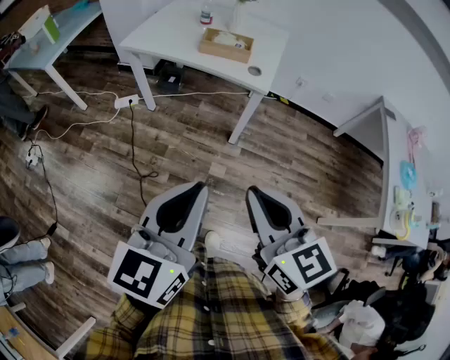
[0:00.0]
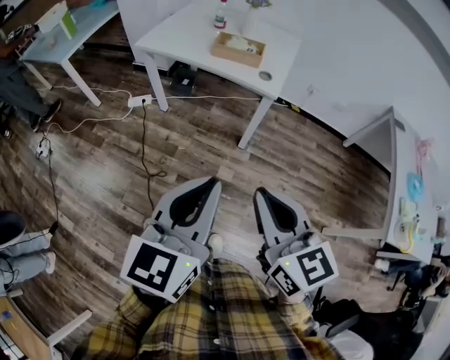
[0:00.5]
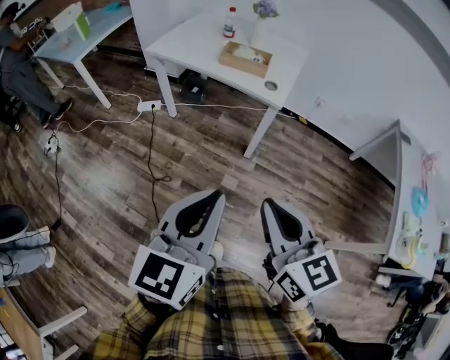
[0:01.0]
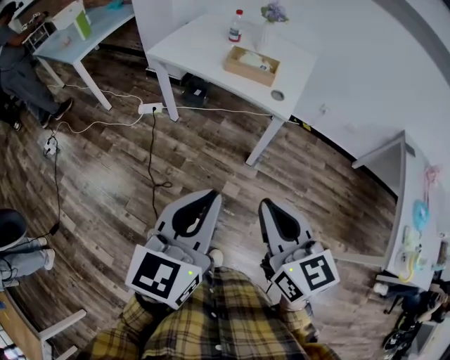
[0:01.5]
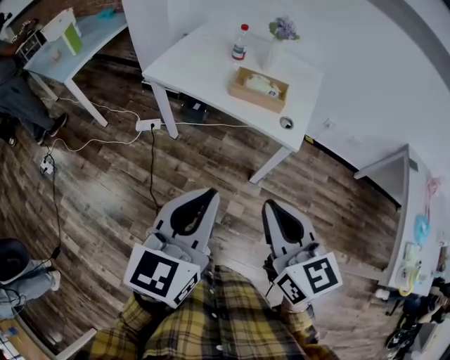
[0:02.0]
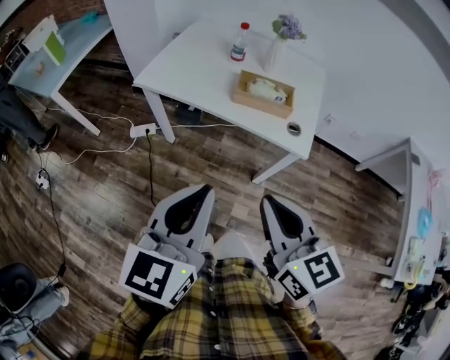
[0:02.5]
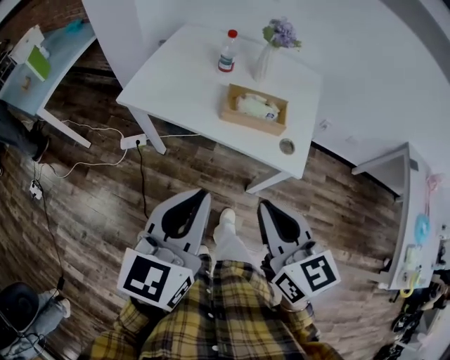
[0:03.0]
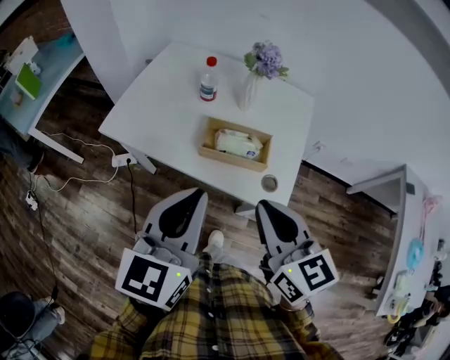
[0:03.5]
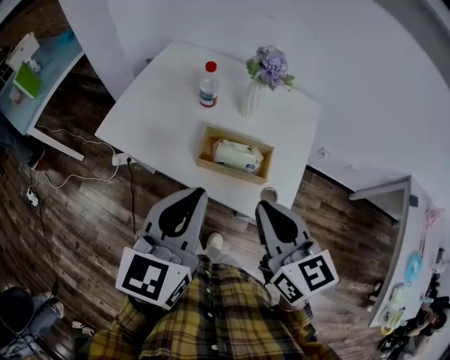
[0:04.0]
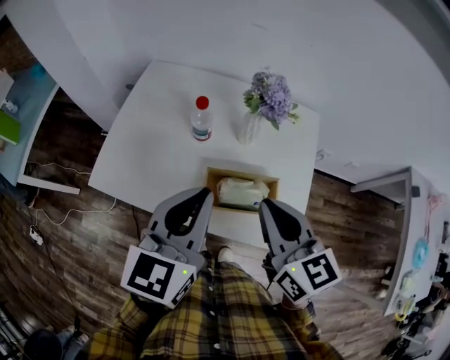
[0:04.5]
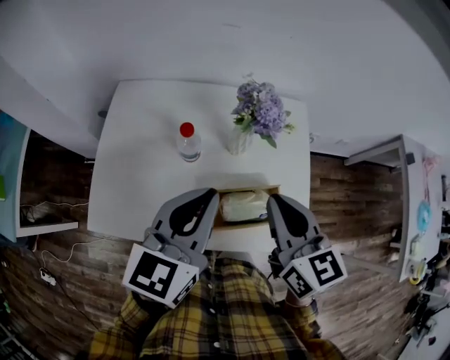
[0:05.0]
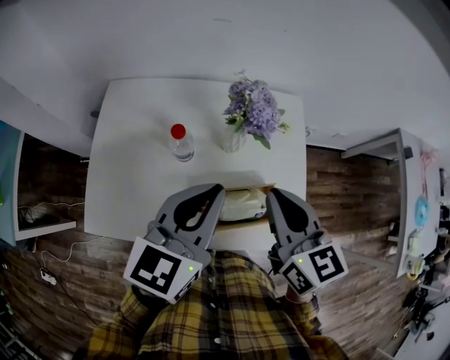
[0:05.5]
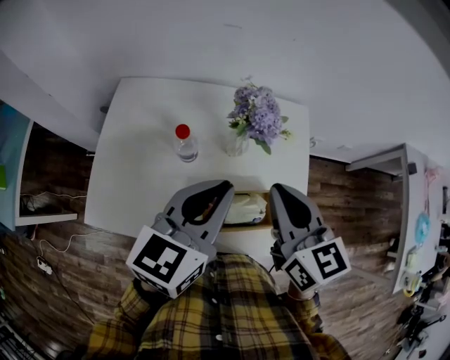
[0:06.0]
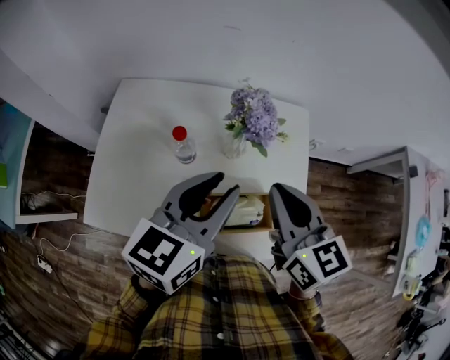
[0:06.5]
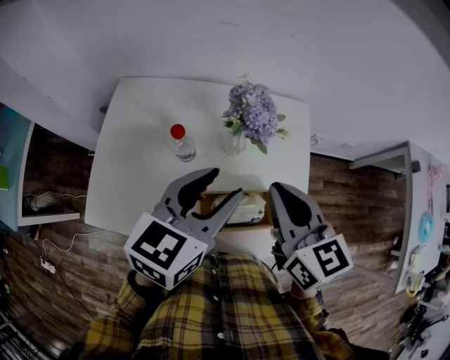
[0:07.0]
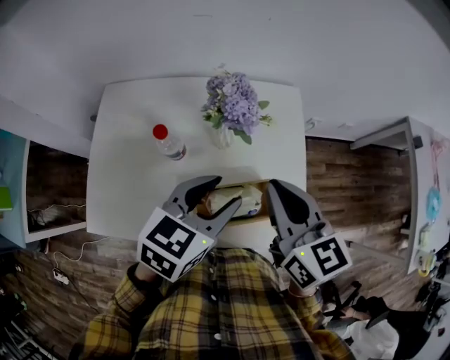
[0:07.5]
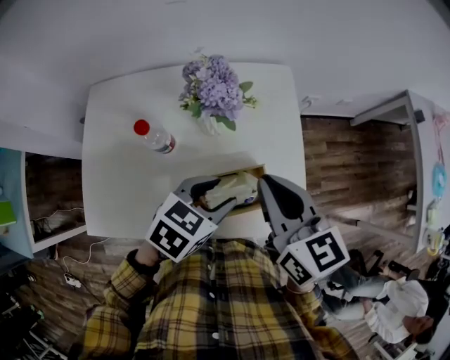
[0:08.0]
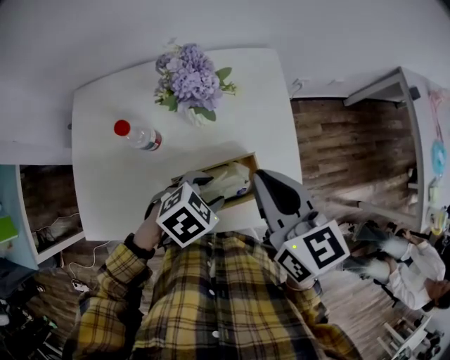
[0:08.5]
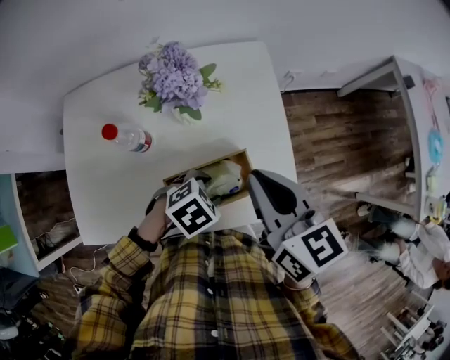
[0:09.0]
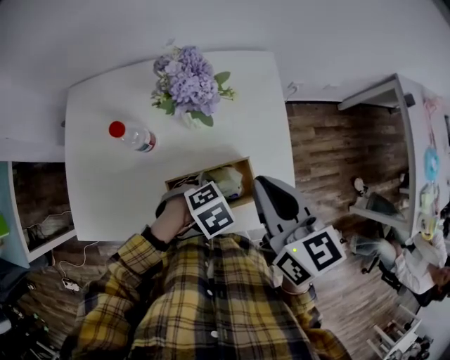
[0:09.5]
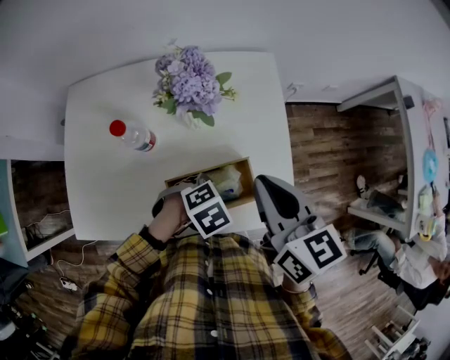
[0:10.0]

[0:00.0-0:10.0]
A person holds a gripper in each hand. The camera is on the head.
0:00.0 to 0:02.0: Both grippers travel together forward, roughly 15 cm.
0:02.0 to 0:04.0: The grippers both shift forward by some 30 cm.
0:04.0 to 0:06.0: The right gripper moves about 20 cm; the left gripper changes place by about 20 cm, and turns by about 30 degrees.
0:06.0 to 0:08.0: The right gripper moves some 5 cm, while the left gripper shifts roughly 15 cm downward and to the right, points its fingers some 30 degrees further downward, and opens up.
0:08.0 to 0:10.0: The left gripper shifts approximately 15 cm downward, points its fingers roughly 30 degrees further downward, and closes up.

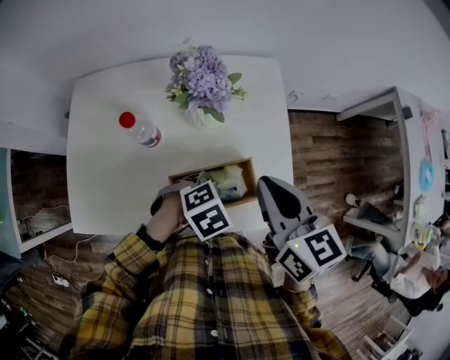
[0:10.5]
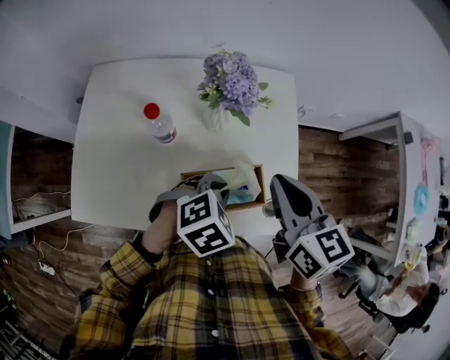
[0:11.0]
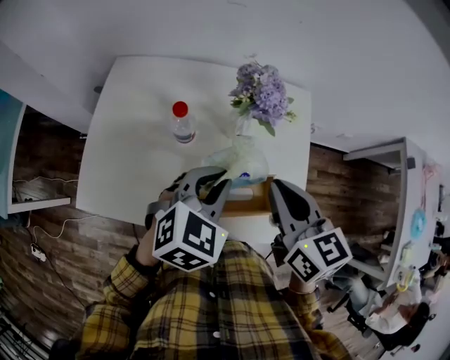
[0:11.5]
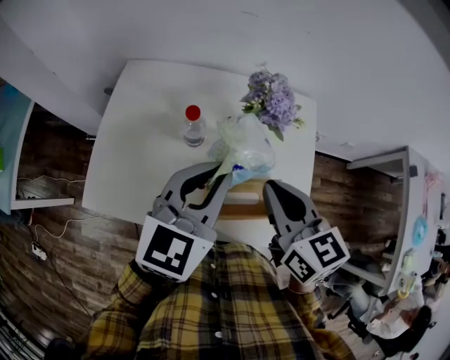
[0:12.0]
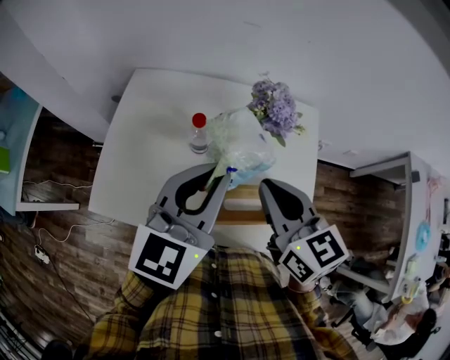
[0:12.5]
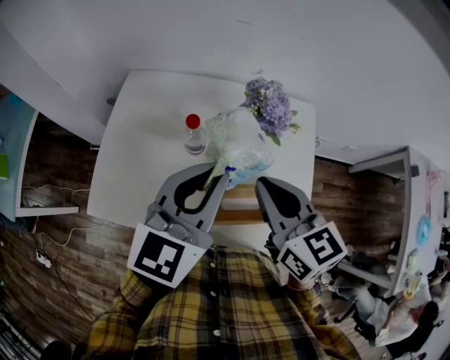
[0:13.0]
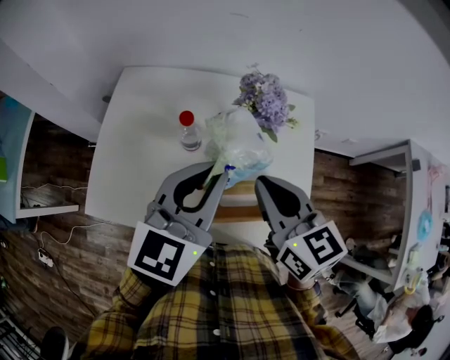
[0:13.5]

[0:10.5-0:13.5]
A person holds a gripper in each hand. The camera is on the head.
0:10.5 to 0:12.0: The left gripper goes about 25 cm upward, and points its fingers approximately 60 degrees further upward. Meanwhile the right gripper shifts by approximately 10 cm.
0:12.0 to 0:13.5: The grippers move only a little.

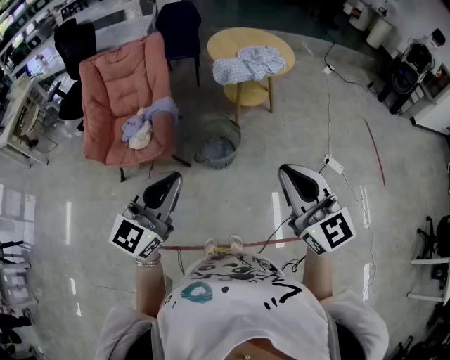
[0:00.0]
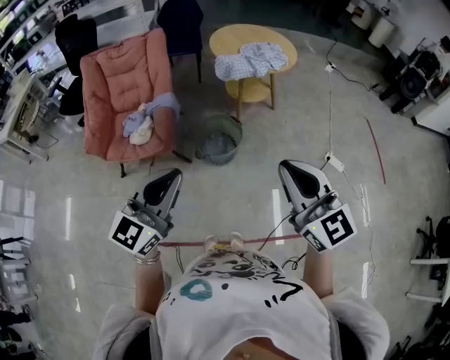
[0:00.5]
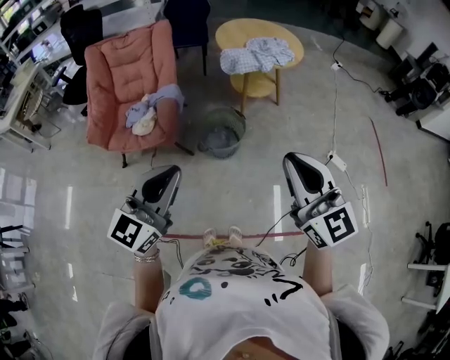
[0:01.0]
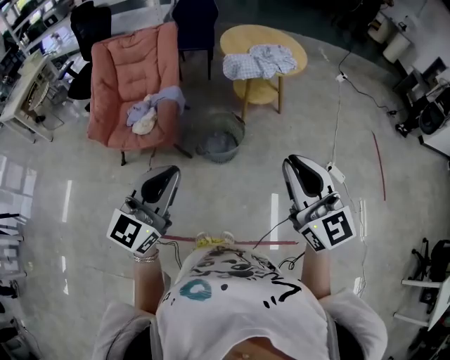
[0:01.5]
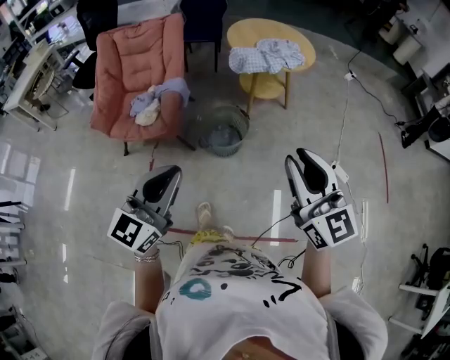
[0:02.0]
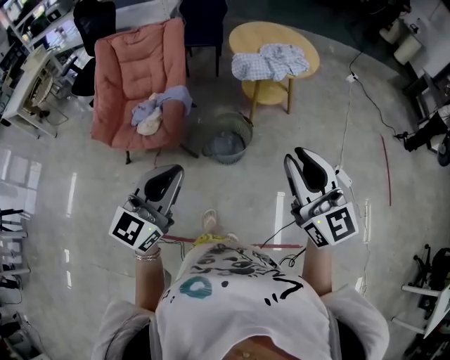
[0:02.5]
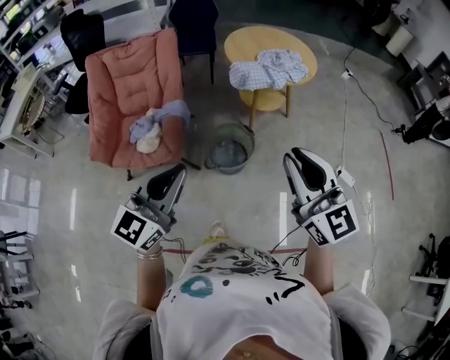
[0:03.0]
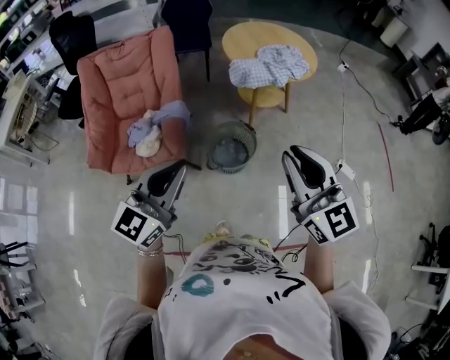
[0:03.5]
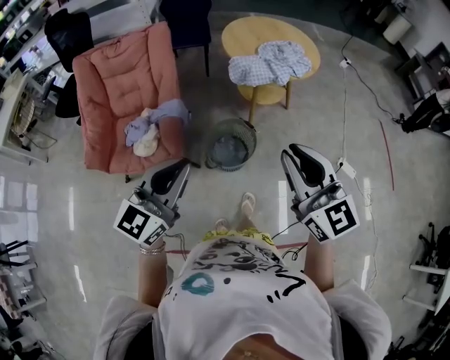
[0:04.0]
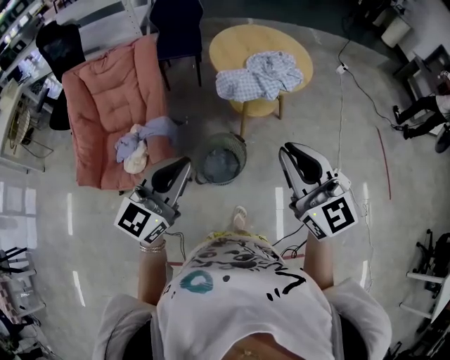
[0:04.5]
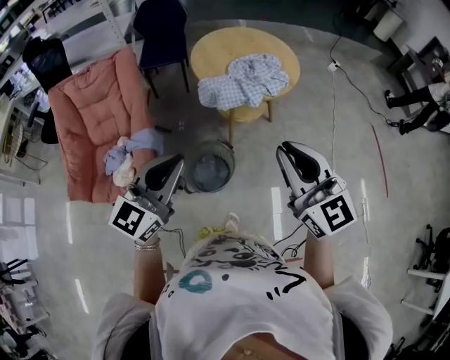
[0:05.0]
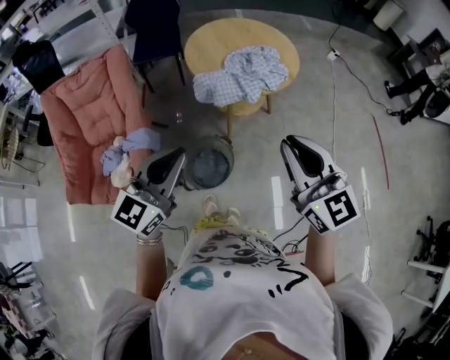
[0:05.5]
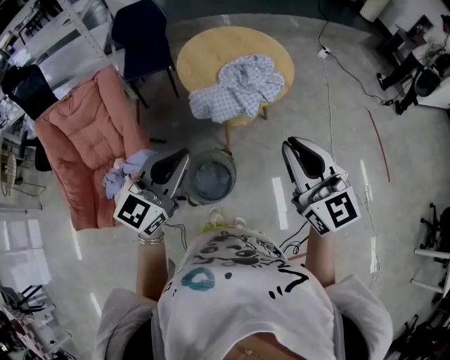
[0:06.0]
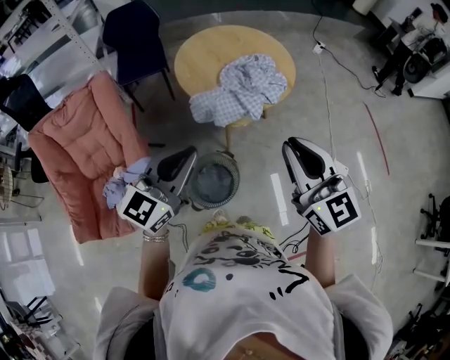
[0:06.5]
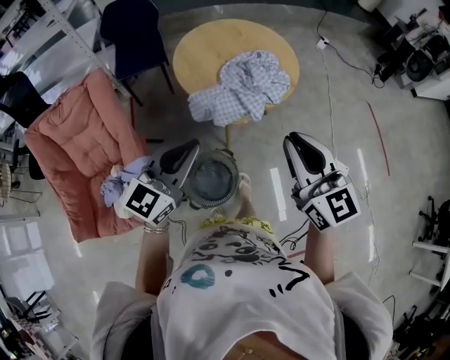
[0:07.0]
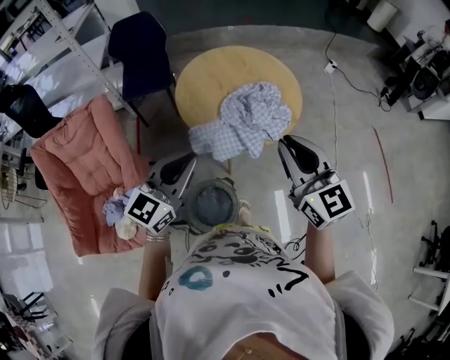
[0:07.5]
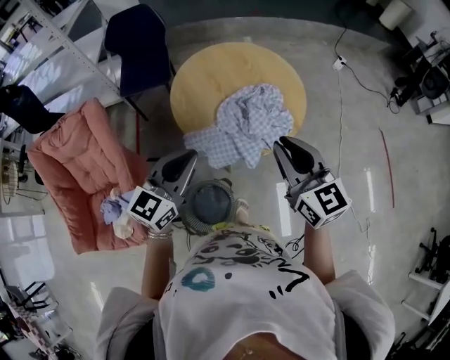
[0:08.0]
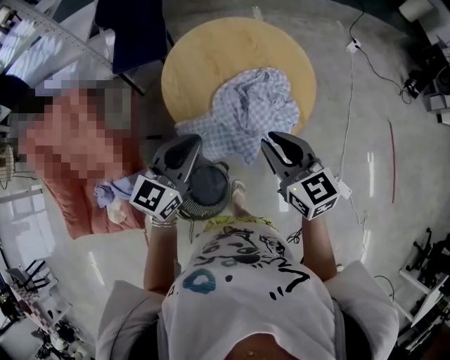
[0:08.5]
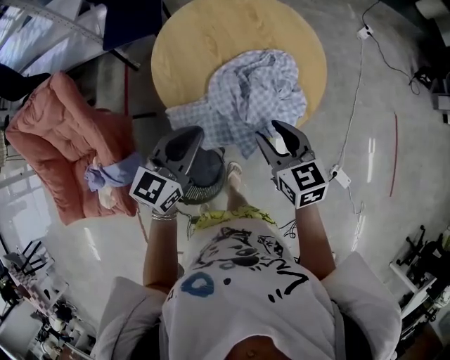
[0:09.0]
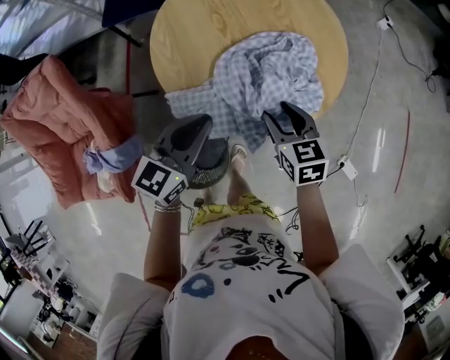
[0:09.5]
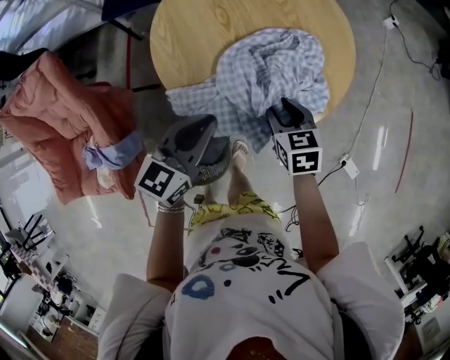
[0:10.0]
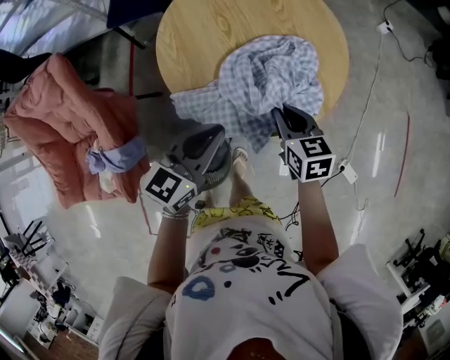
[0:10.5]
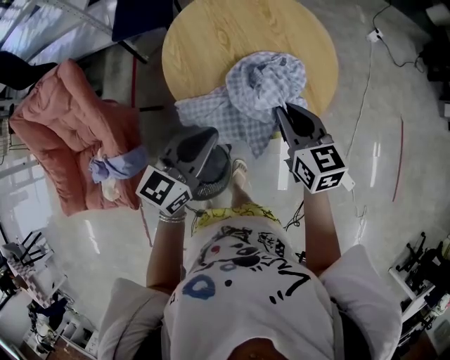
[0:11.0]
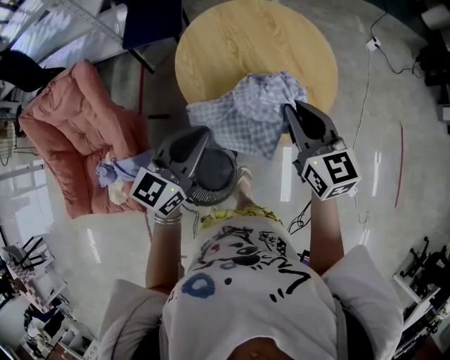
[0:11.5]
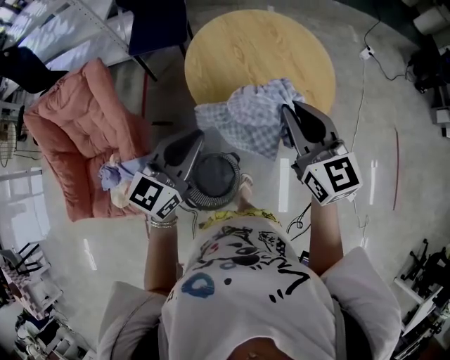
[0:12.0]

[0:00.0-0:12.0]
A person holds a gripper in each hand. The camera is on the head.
0:00.0 to 0:02.0: The right gripper ends up roughly 5 cm from where it was.
0:02.0 to 0:04.0: The left gripper travels forward by approximately 20 cm, while the right gripper heads forward and to the left, covering some 20 cm.
0:04.0 to 0:06.0: The right gripper shifts roughly 25 cm forward and to the right. Meanwhile the left gripper is displaced forward by approximately 30 cm.
0:06.0 to 0:08.0: Both grippers move forward, approximately 25 cm.
0:08.0 to 0:10.0: The left gripper travels downward and forward by some 20 cm; the right gripper heads downward and forward, covering approximately 35 cm, angles its fingers downward, by approximately 40 degrees, and opens up.
0:10.0 to 0:12.0: The left gripper shifts some 20 cm upward, to the left and backward; the right gripper moves upward, some 30 cm, tilts its fingers approximately 40 degrees upward, and closes its fingers.

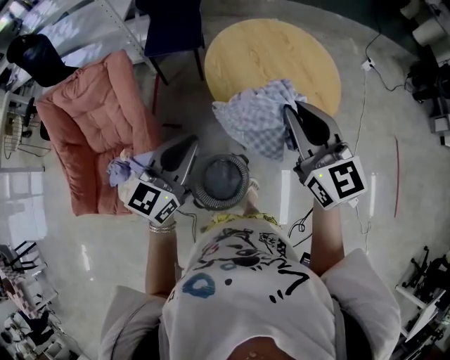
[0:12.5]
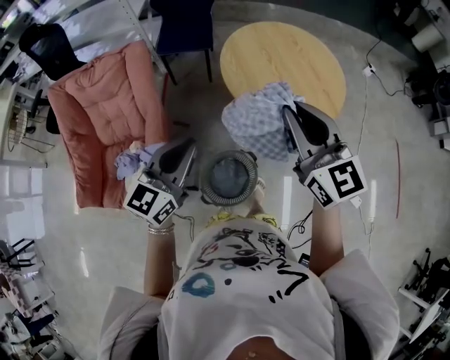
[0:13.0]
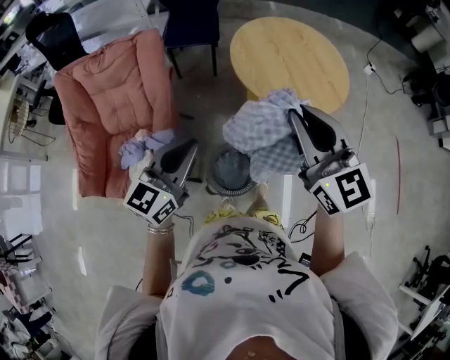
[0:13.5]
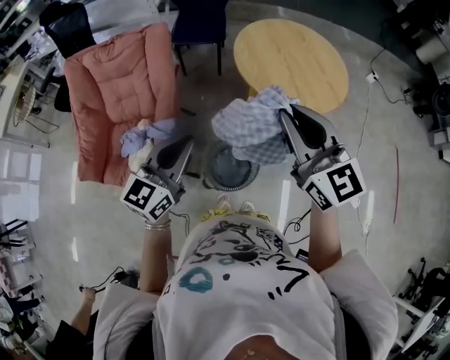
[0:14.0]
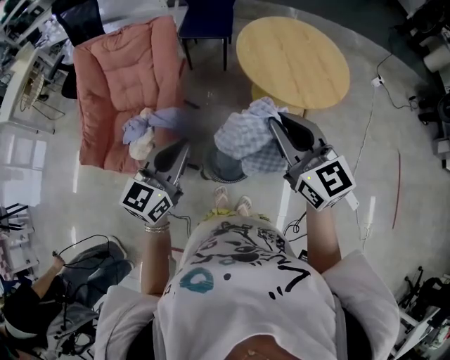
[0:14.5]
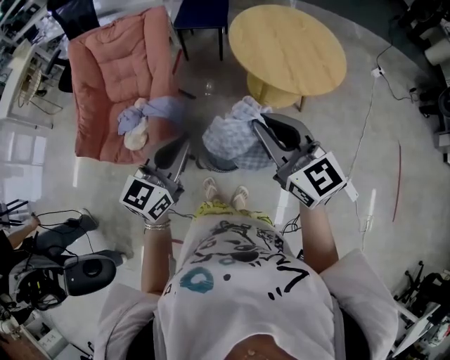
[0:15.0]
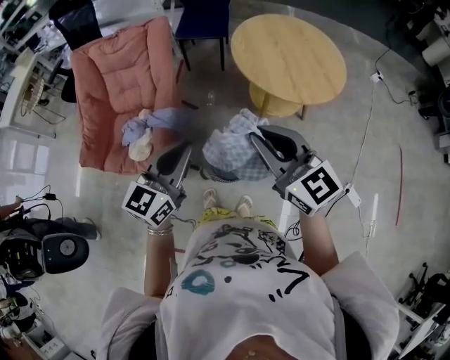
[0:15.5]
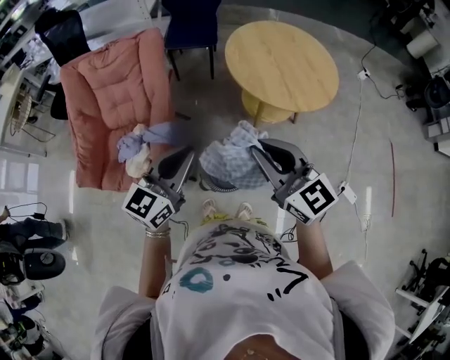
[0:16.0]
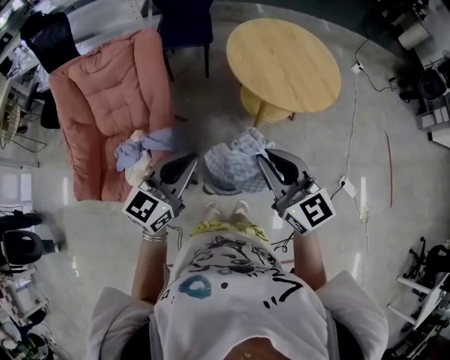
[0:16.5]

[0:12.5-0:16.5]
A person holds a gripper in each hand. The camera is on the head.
0:12.5 to 0:14.5: The right gripper goes some 20 cm backward and to the left; the left gripper moves backward, roughly 20 cm.
0:14.5 to 0:16.5: The left gripper moves forward, roughly 5 cm. Meanwhile the right gripper goes approximately 10 cm to the left and downward.
